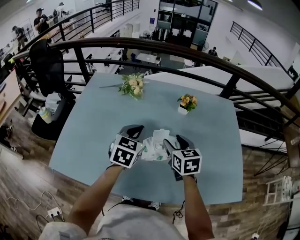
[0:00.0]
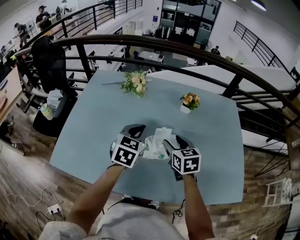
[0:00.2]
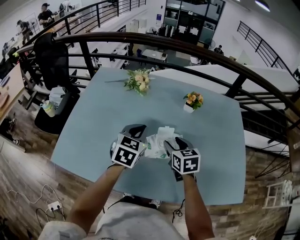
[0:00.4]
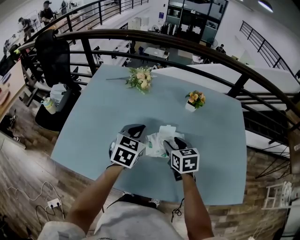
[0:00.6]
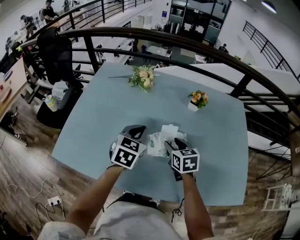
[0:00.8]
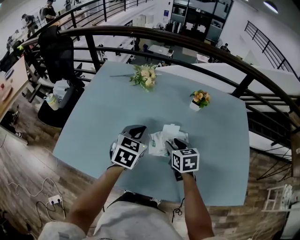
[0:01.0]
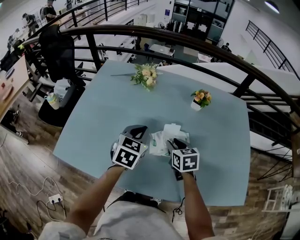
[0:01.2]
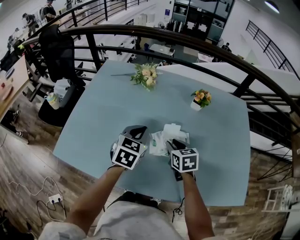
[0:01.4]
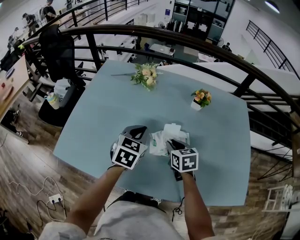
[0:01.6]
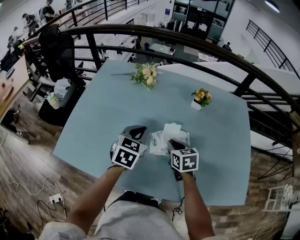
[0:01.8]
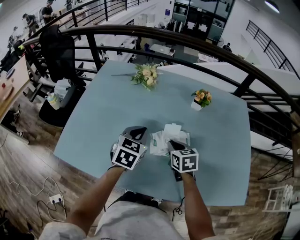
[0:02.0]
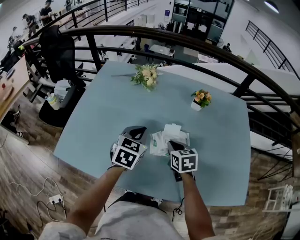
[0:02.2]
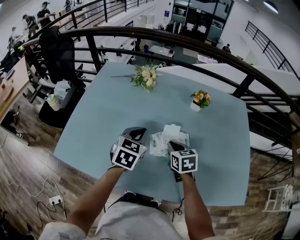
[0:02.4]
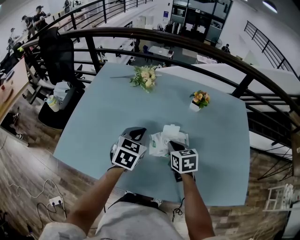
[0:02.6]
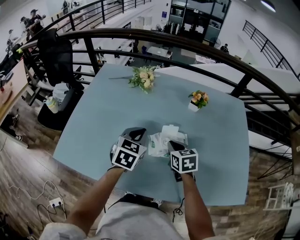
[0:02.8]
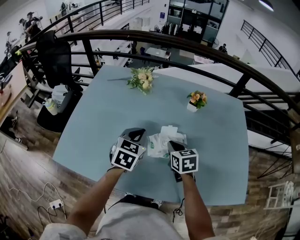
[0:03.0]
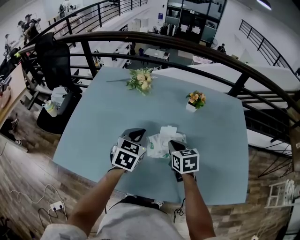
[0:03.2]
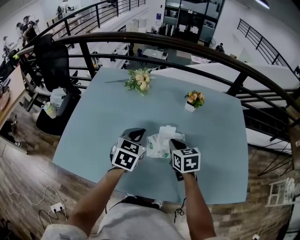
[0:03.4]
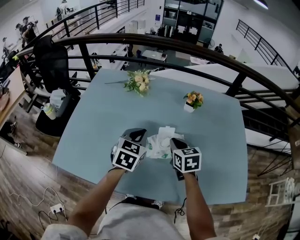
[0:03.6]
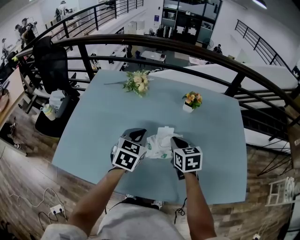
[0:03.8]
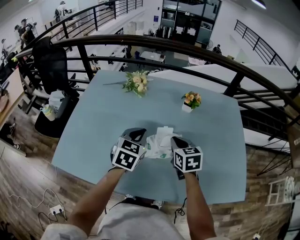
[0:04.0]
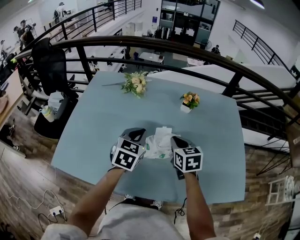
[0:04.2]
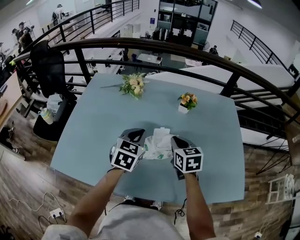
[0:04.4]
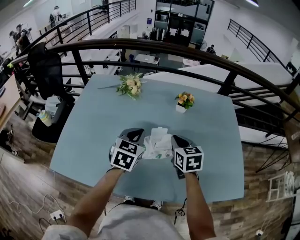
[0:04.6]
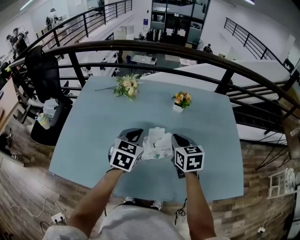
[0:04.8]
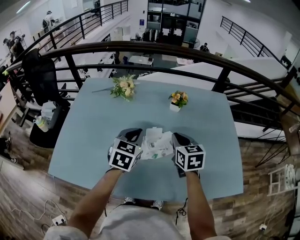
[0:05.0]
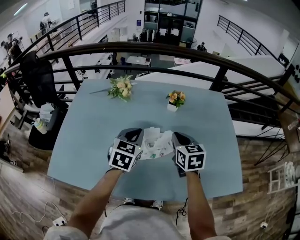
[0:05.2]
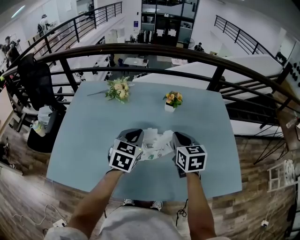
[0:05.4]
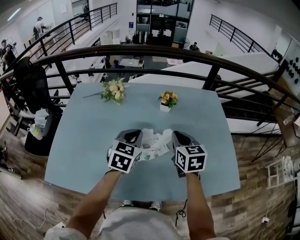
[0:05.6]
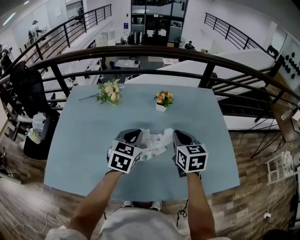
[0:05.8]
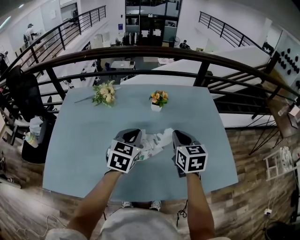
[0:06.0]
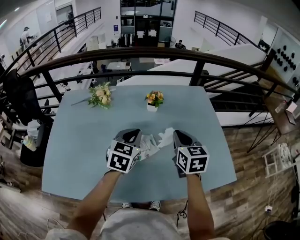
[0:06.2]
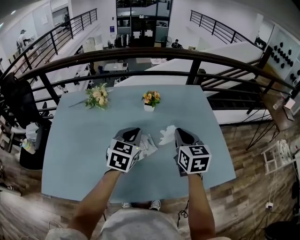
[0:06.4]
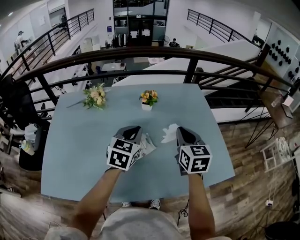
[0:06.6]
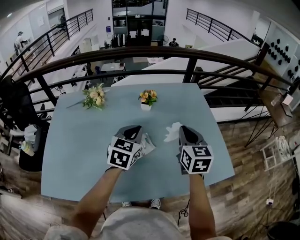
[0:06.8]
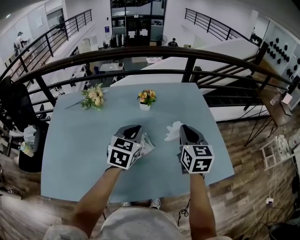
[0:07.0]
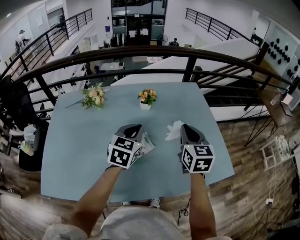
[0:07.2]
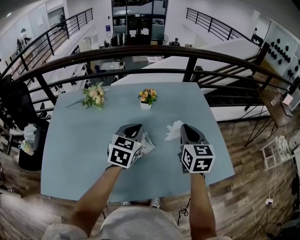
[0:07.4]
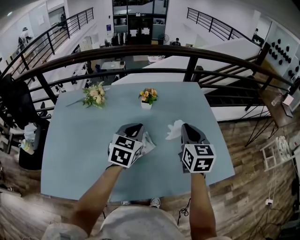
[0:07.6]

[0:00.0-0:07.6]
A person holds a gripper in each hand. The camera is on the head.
0:00.0 to 0:01.6: The left gripper moves about 5 cm; the right gripper is displaced downward by roughly 10 cm, and closes its fingers.
0:01.6 to 0:03.0: There are only small adjustments of the grippers.
0:03.0 to 0:04.6: The right gripper is displaced upward by roughly 5 cm.
0:04.6 to 0:06.0: The left gripper is displaced to the right by some 10 cm. The right gripper goes roughly 10 cm to the right and upward.
0:06.0 to 0:07.6: The right gripper shifts approximately 5 cm to the right. The left gripper shifts by approximately 5 cm.

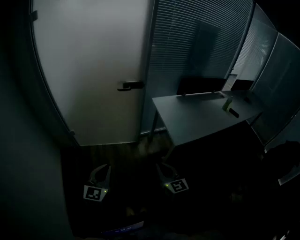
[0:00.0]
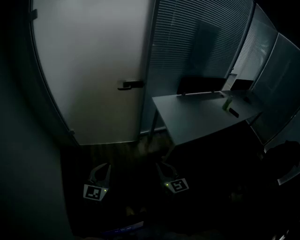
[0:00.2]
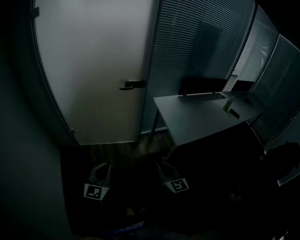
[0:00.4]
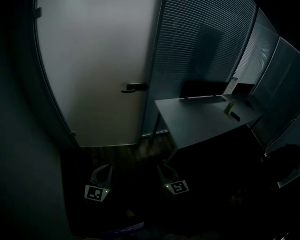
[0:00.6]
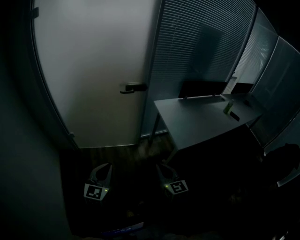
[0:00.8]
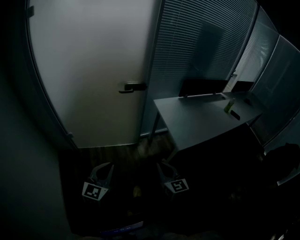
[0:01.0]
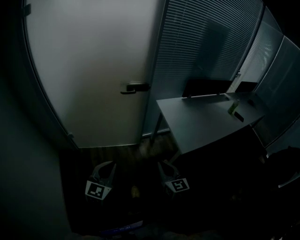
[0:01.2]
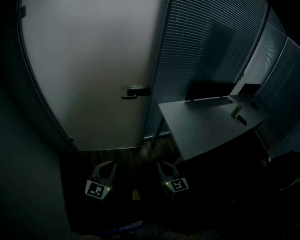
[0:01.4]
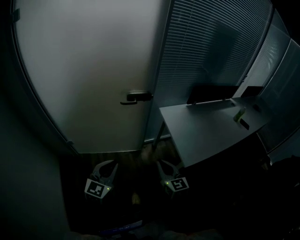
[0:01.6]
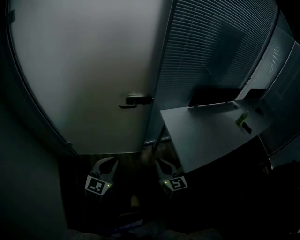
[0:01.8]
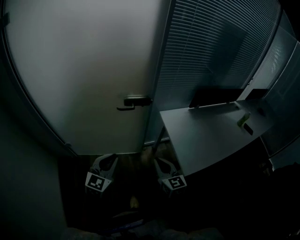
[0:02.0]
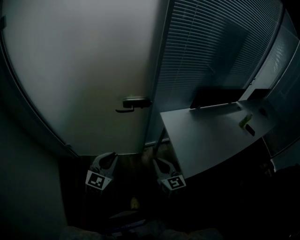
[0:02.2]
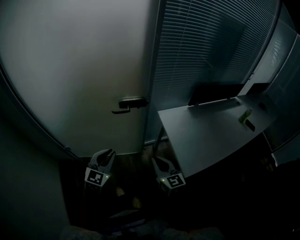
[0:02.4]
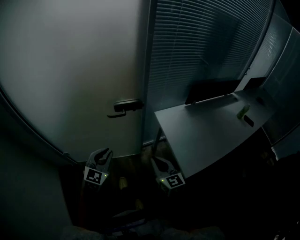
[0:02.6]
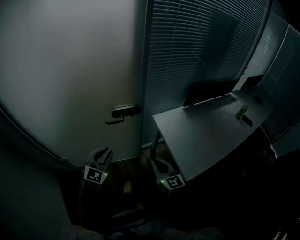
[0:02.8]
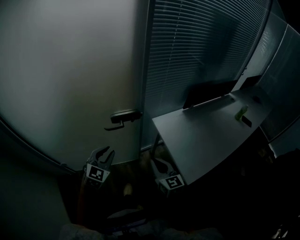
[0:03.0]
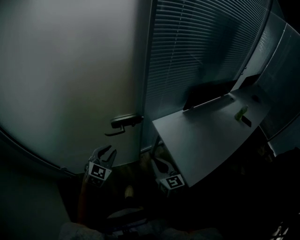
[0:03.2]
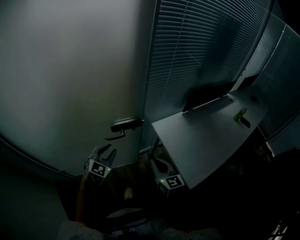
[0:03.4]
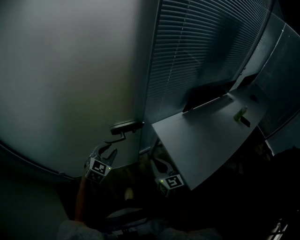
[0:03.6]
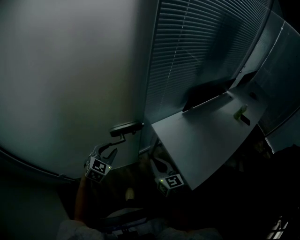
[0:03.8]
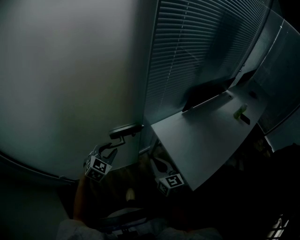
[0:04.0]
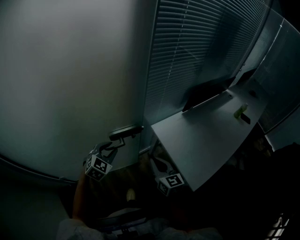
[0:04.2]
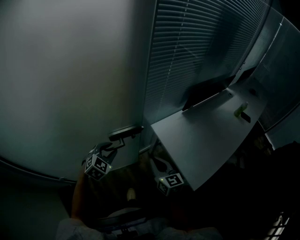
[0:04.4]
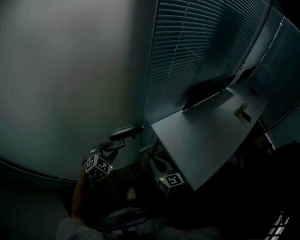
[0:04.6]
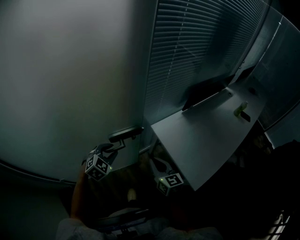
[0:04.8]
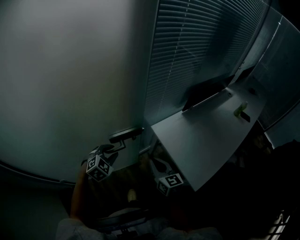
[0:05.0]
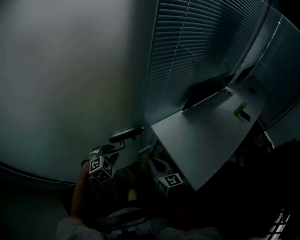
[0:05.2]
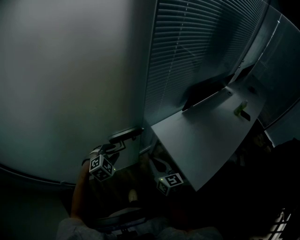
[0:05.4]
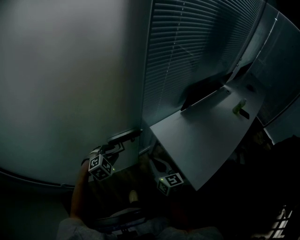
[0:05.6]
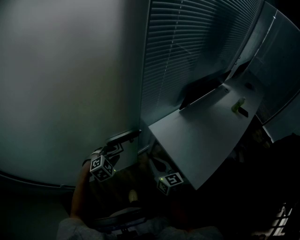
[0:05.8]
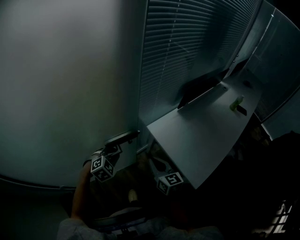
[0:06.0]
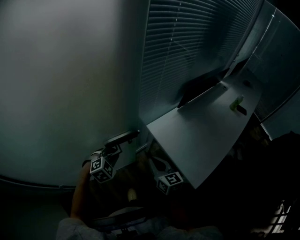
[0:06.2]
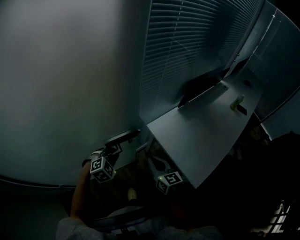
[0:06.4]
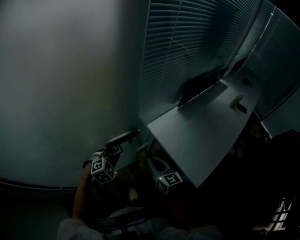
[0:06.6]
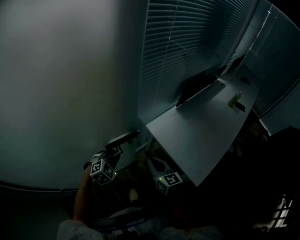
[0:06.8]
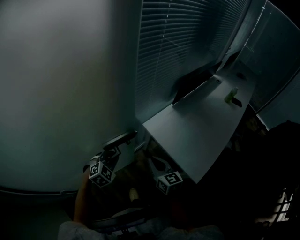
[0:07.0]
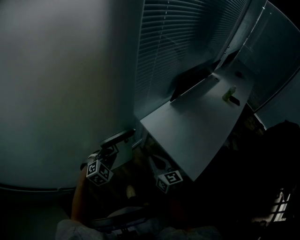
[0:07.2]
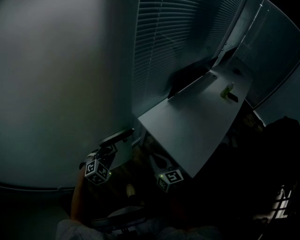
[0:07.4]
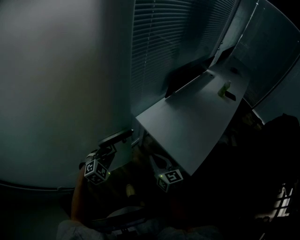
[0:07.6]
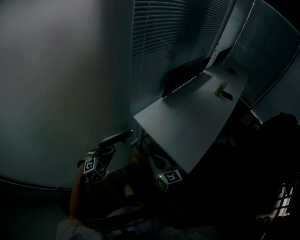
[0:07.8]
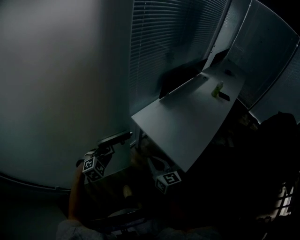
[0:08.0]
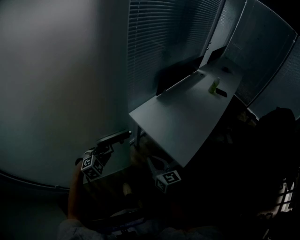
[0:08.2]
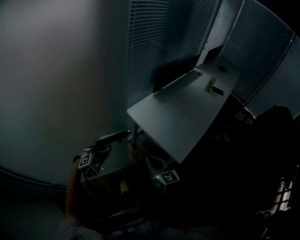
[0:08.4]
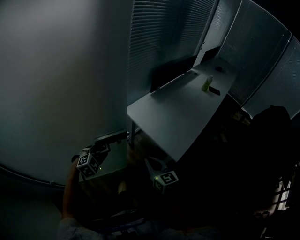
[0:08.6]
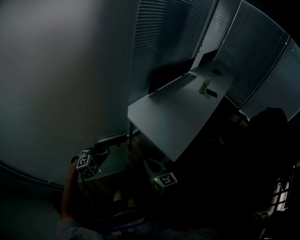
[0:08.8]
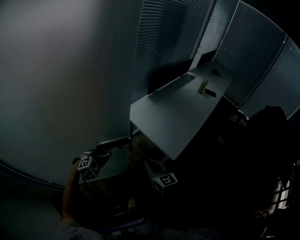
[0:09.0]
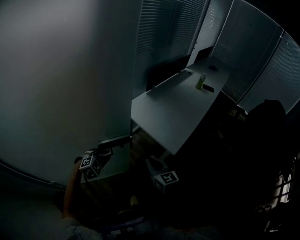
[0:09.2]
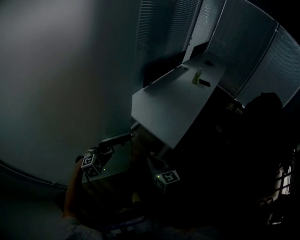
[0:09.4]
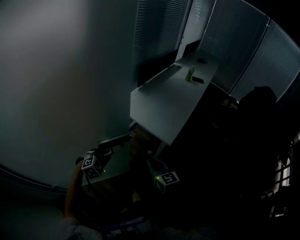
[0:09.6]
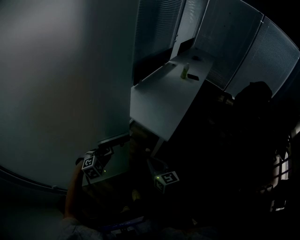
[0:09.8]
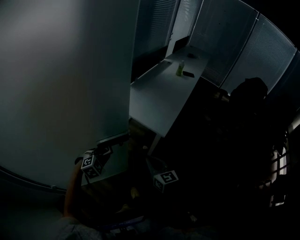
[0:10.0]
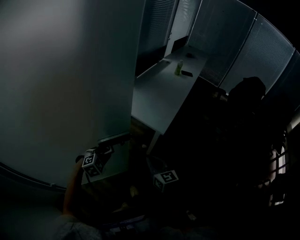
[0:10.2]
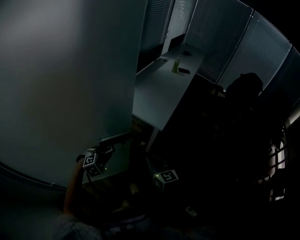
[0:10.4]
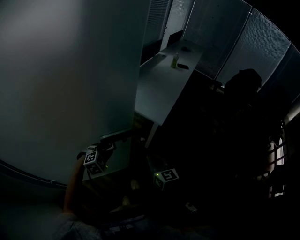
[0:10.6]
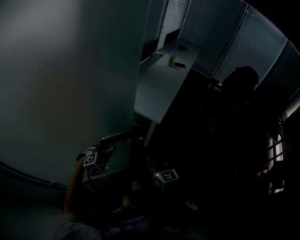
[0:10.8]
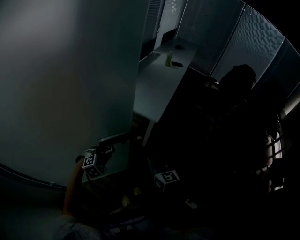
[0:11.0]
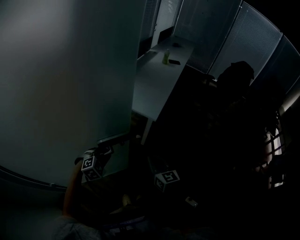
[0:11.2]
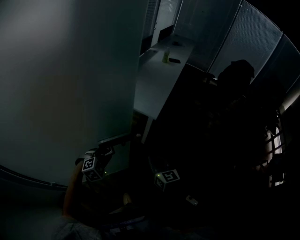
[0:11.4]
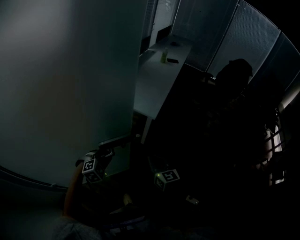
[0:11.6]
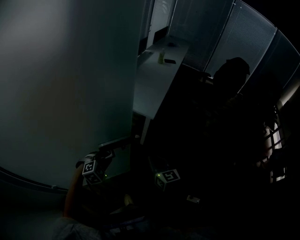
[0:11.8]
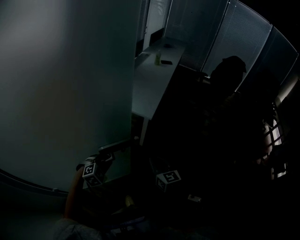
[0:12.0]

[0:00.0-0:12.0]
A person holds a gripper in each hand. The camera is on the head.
0:00.0 to 0:01.6: The grippers both shift forward by roughly 20 cm.
0:01.6 to 0:03.0: Both grippers move forward, approximately 25 cm.
0:03.0 to 0:04.4: The two grippers go about 15 cm forward. The left gripper turns by some 20 degrees.
0:04.4 to 0:06.0: The left gripper ends up about 5 cm from where it was.
0:06.0 to 0:07.6: The right gripper shifts by about 5 cm.
0:07.6 to 0:09.0: The left gripper travels backward and to the right by roughly 15 cm; the right gripper moves backward, approximately 15 cm.
0:09.0 to 0:10.4: The left gripper is displaced backward and to the right by about 15 cm, while the right gripper is displaced backward by some 15 cm.
0:10.4 to 0:12.0: The right gripper heads backward and to the right, covering approximately 10 cm. Meanwhile the left gripper shifts roughly 10 cm backward.

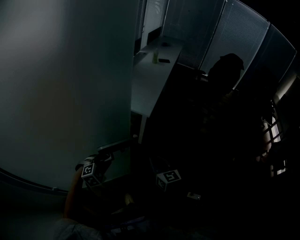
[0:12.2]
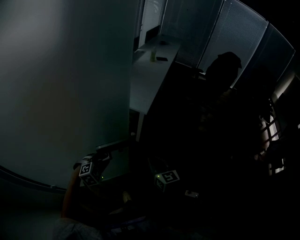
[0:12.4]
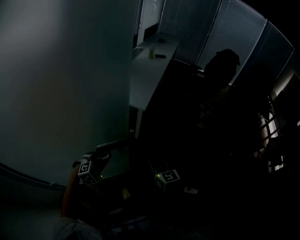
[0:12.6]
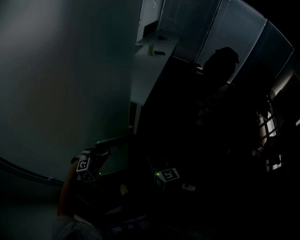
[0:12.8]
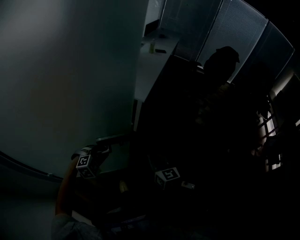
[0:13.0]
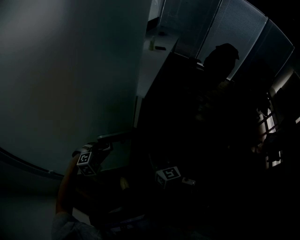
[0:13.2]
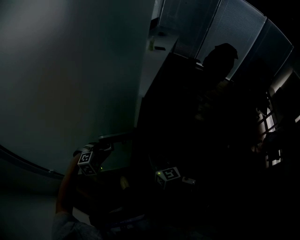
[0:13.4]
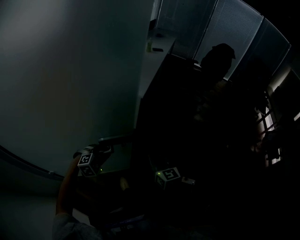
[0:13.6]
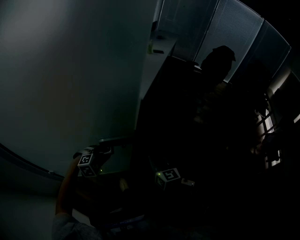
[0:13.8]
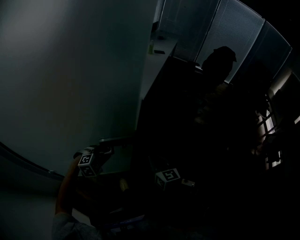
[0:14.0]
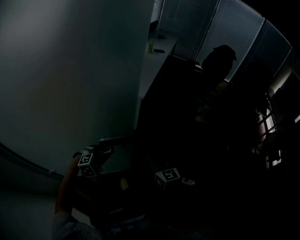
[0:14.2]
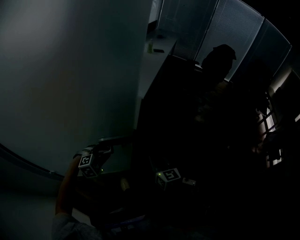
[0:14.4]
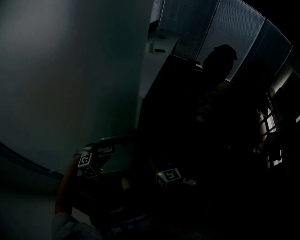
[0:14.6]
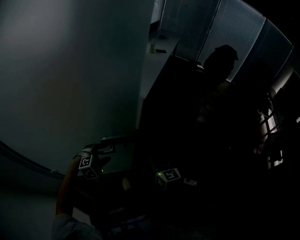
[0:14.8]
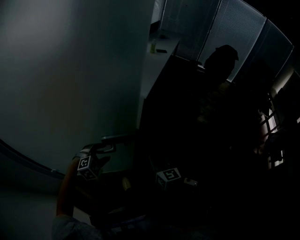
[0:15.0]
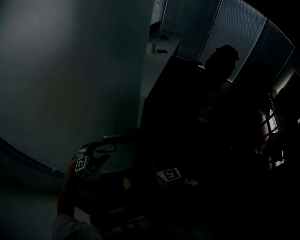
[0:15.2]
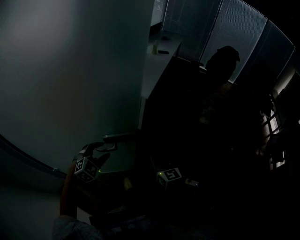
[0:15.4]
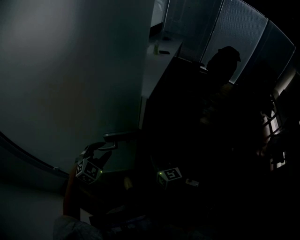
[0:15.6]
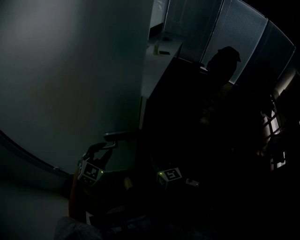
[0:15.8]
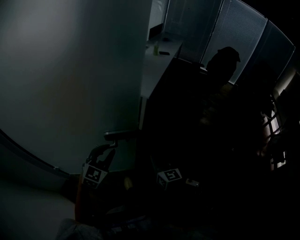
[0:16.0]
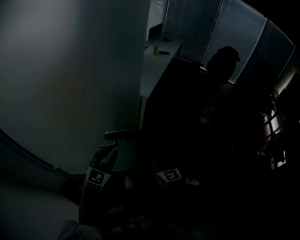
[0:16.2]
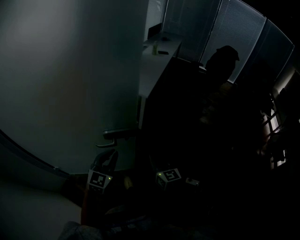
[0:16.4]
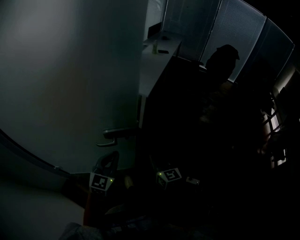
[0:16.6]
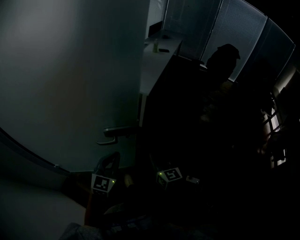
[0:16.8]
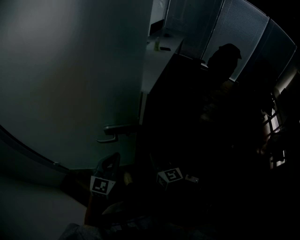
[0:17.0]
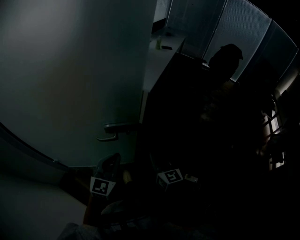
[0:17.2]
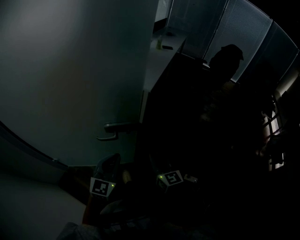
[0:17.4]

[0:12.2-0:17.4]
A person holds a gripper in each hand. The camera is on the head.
0:12.2 to 0:14.0: The left gripper is displaced backward and to the right by about 15 cm. Meanwhile the right gripper goes approximately 15 cm backward.
0:14.0 to 0:15.6: The left gripper heads upward, covering about 5 cm, swivels about 30 degrees, and opens.
0:15.6 to 0:17.4: The right gripper shifts by about 5 cm, while the left gripper moves backward and to the right, about 10 cm, swivels some 40 degrees, and closes.
